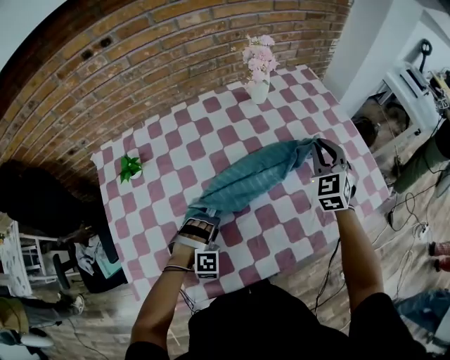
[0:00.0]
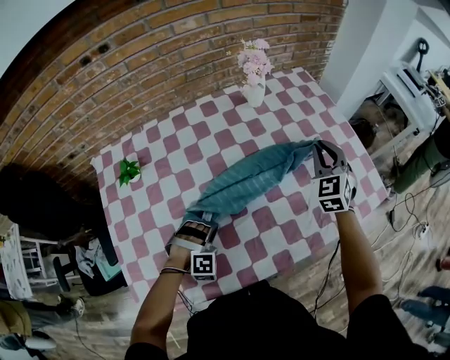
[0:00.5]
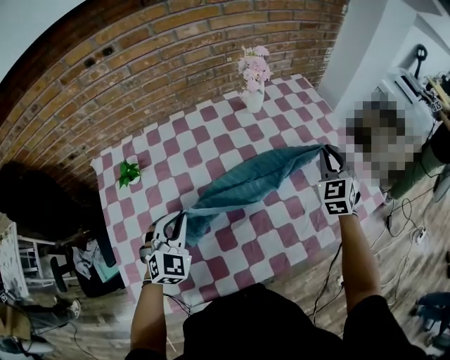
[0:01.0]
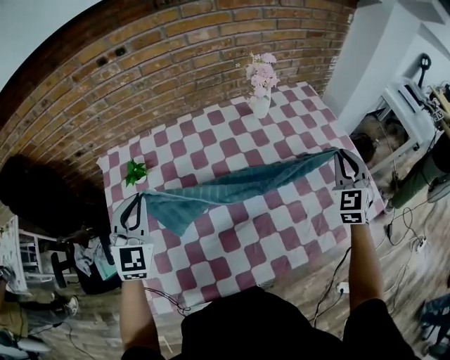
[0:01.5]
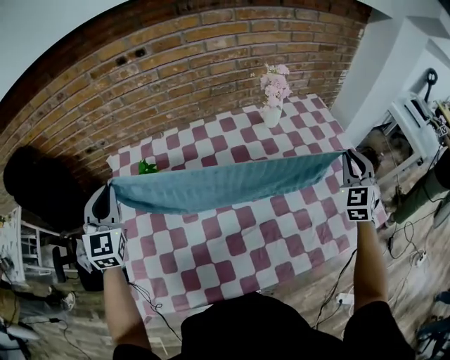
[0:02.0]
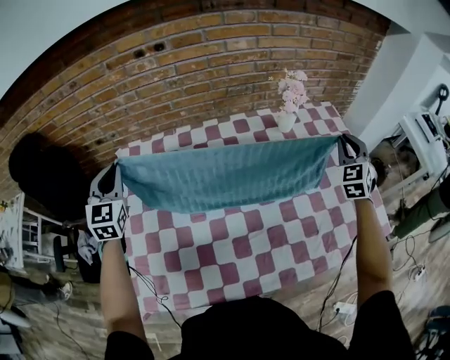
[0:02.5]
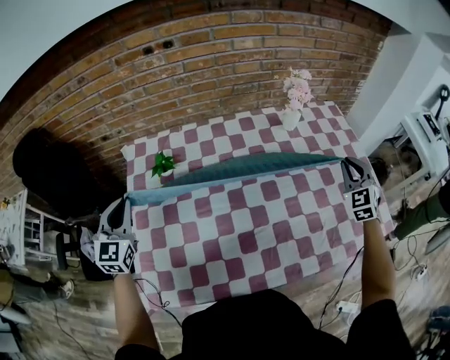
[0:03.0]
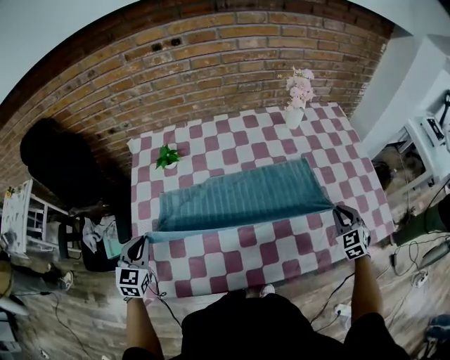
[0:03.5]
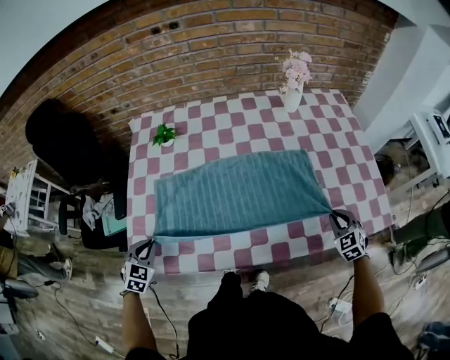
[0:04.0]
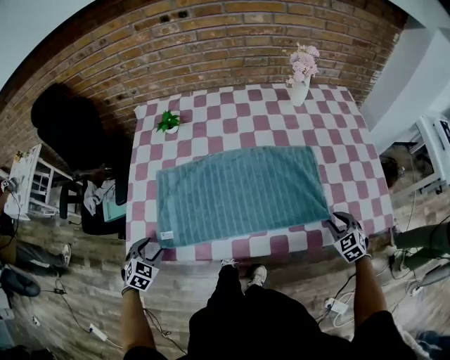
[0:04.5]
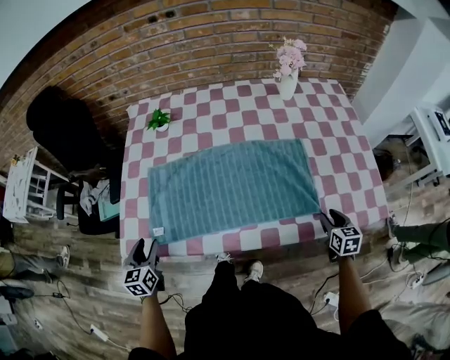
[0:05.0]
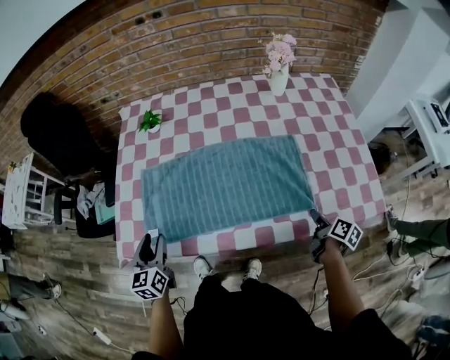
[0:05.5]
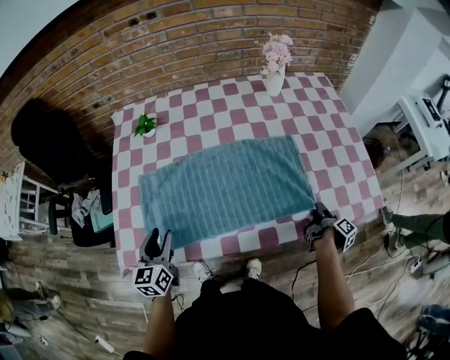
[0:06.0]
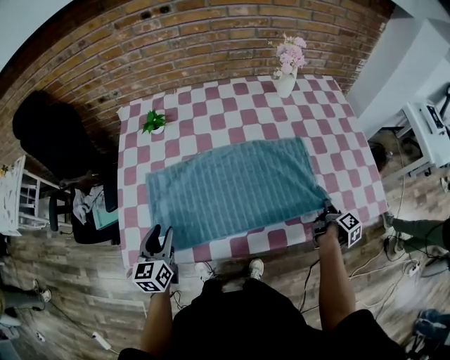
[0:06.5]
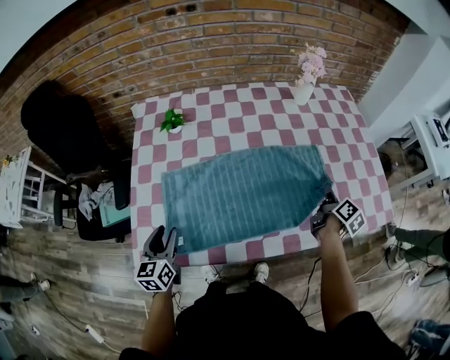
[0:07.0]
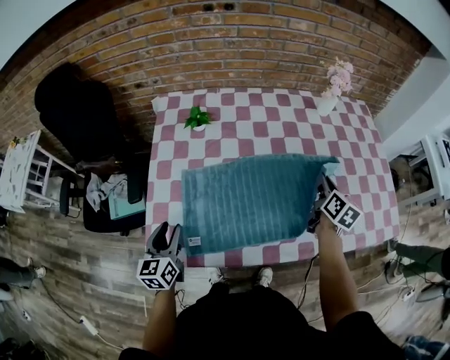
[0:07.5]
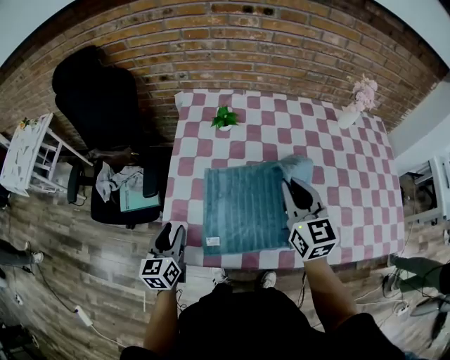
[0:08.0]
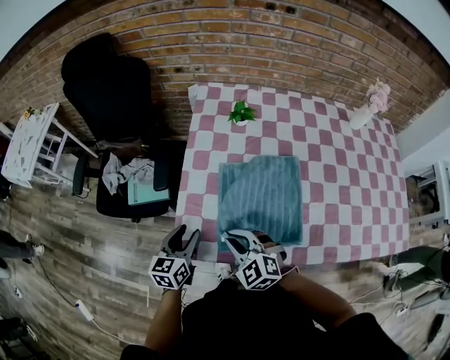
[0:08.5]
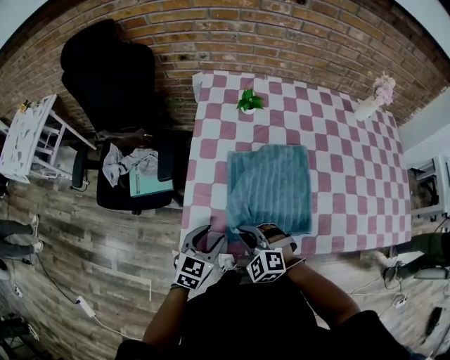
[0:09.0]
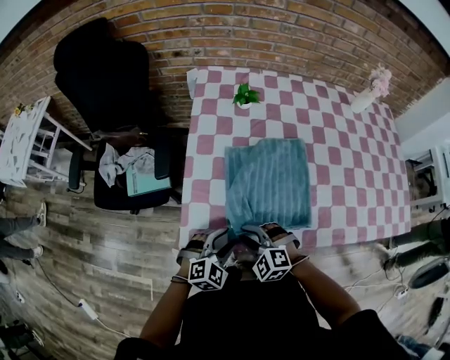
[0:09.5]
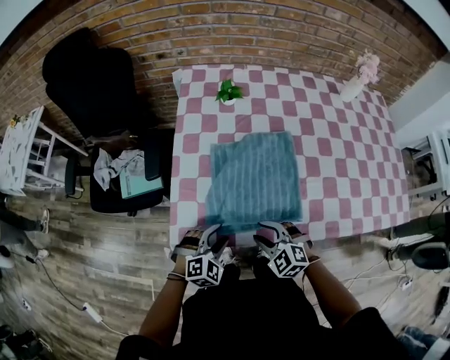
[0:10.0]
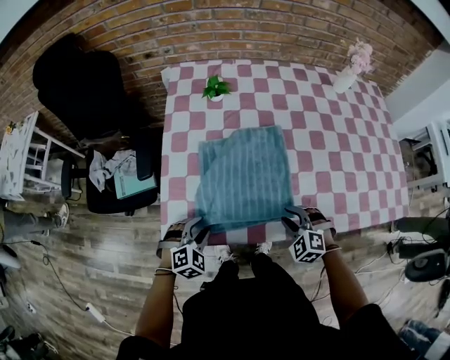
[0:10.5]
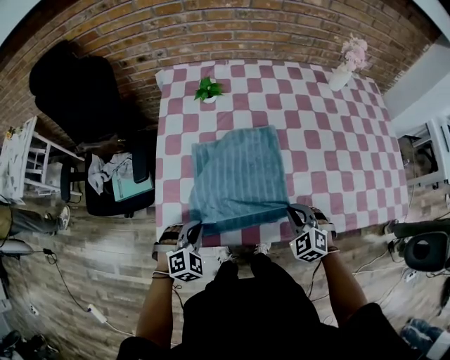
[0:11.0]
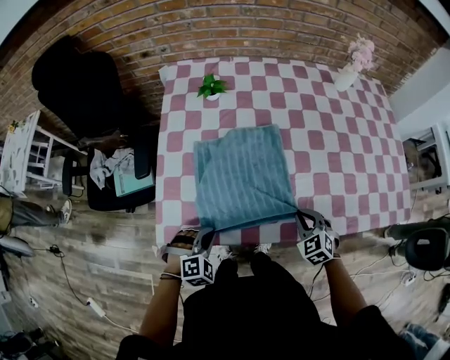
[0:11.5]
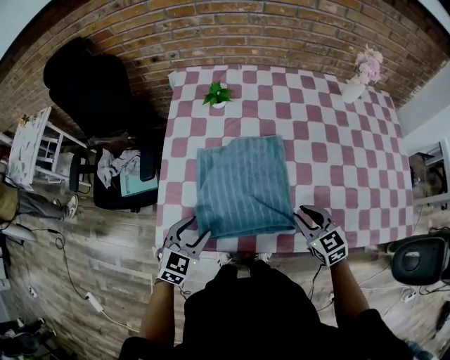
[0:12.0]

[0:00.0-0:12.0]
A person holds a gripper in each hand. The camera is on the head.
0:00.0 to 0:02.0: The right gripper goes approximately 10 cm upward and to the right, while the left gripper moves upward and to the left, roughly 40 cm, angles its fingers upward, by approximately 50 degrees, and closes up.
0:02.0 to 0:04.0: The left gripper heads backward and downward, covering some 40 cm, and angles its fingers downward, by approximately 40 degrees. The right gripper travels downward and backward by approximately 30 cm, and turns by roughly 40 degrees.
0:04.0 to 0:06.0: The right gripper goes roughly 5 cm downward, and rolls clockwise, seen from behind, by approximately 130 degrees, while the left gripper heads to the right and upward, covering roughly 15 cm, rotates approximately 50 degrees, and opens up.
0:06.0 to 0:08.0: The right gripper travels to the left and upward by about 50 cm, and twists roughly 100 degrees counterclockwise, seen from behind; the left gripper is displaced to the left by approximately 20 cm.
0:08.0 to 0:10.0: The right gripper shifts about 30 cm downward, backward and to the left, tilts its fingers approximately 30 degrees downward, and opens up; the left gripper goes some 15 cm backward, to the right and downward, and rotates around the line of its fingers by roughly 60 degrees, clockwise from behind.
0:10.0 to 0:12.0: The right gripper moves to the right and forward, approximately 20 cm, and rotates roughly 30 degrees; the left gripper shifts some 10 cm upward and forward, turns by some 30 degrees, and closes and opens again.

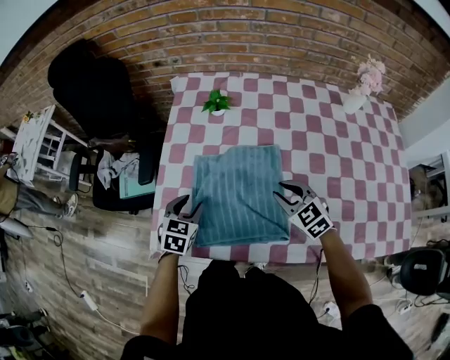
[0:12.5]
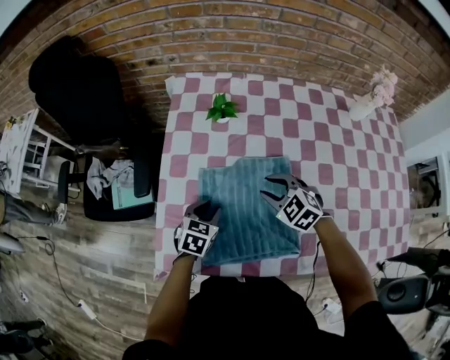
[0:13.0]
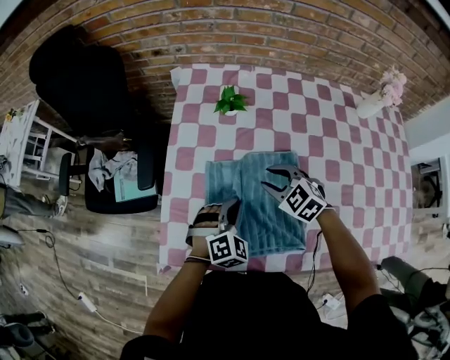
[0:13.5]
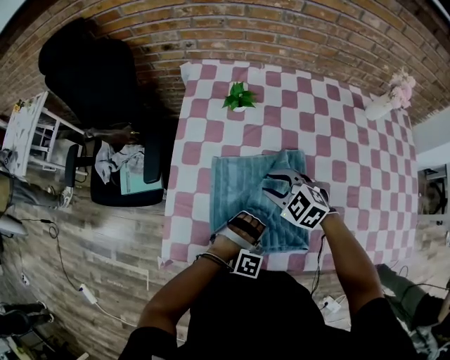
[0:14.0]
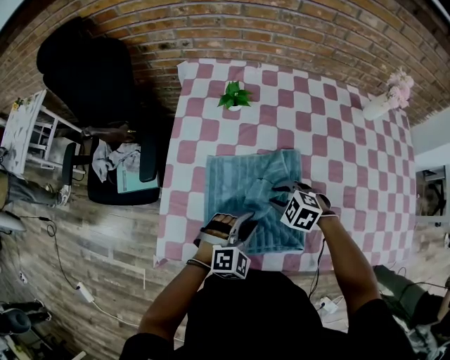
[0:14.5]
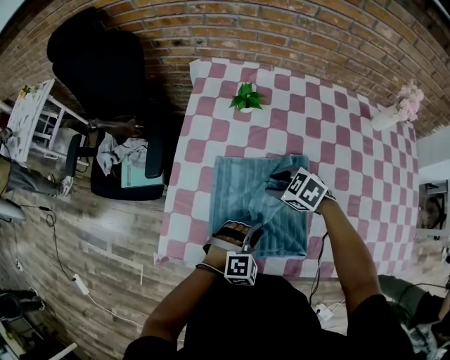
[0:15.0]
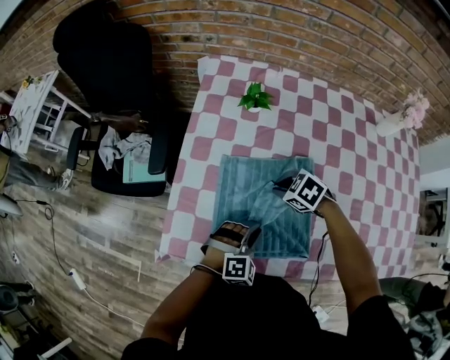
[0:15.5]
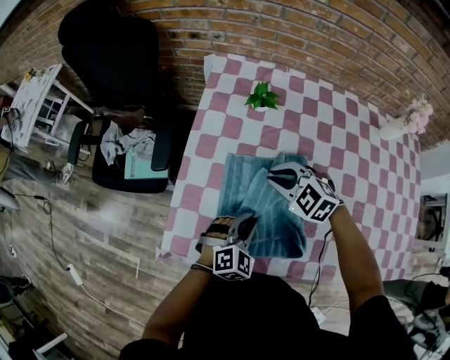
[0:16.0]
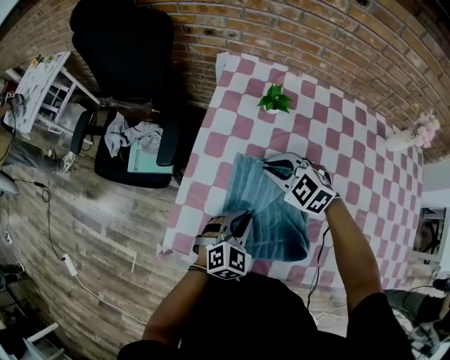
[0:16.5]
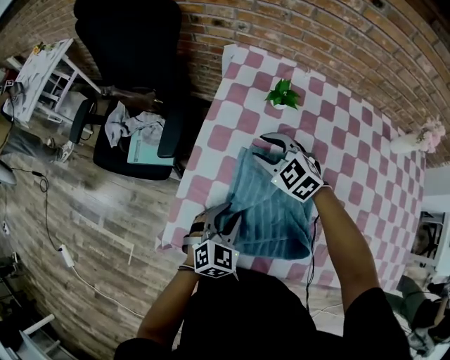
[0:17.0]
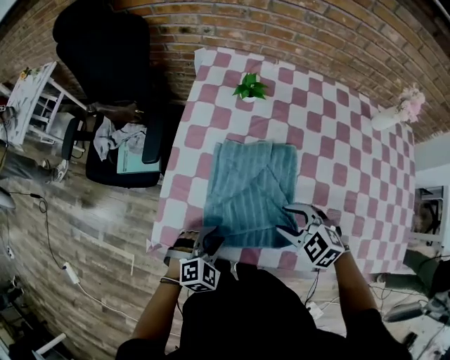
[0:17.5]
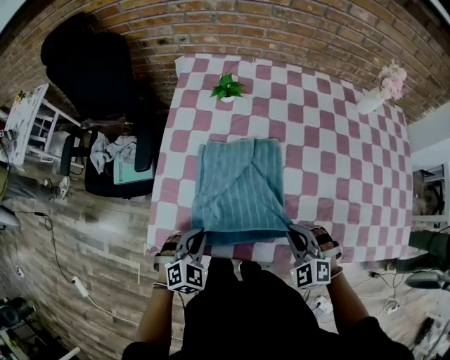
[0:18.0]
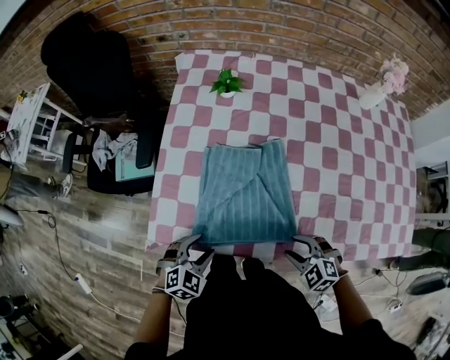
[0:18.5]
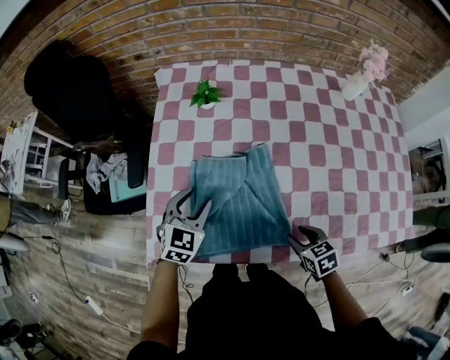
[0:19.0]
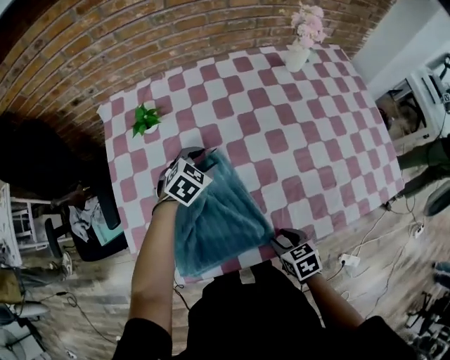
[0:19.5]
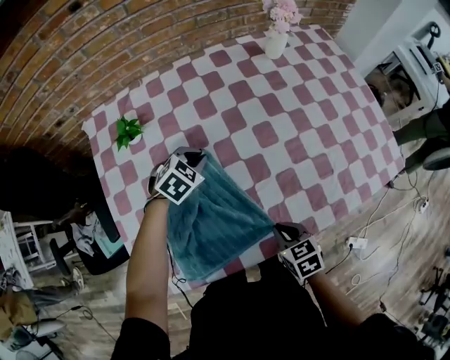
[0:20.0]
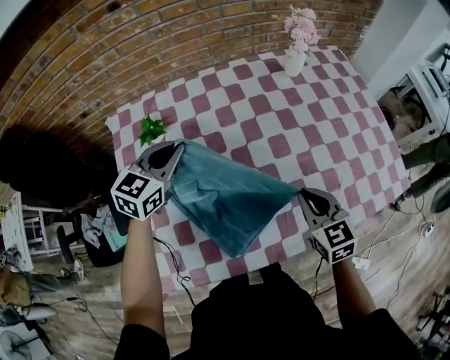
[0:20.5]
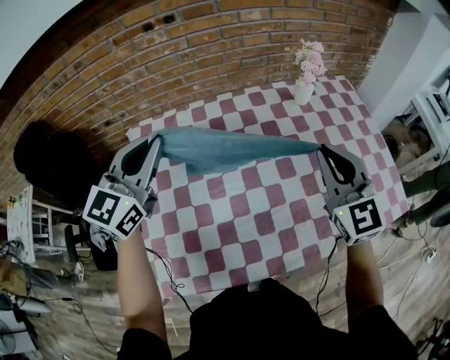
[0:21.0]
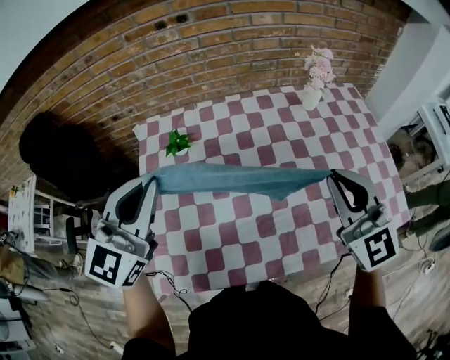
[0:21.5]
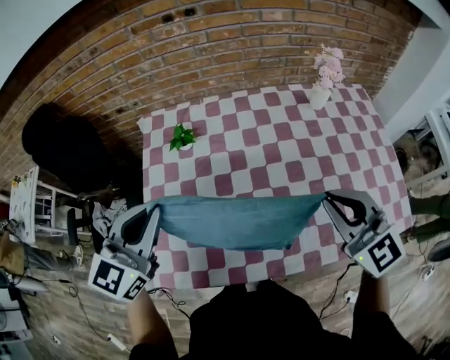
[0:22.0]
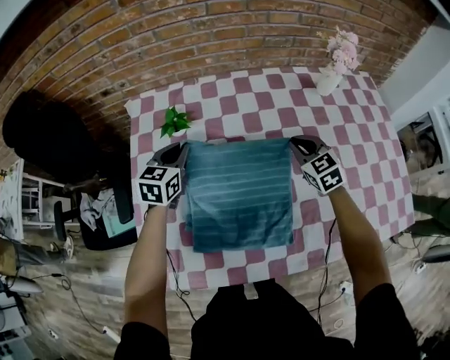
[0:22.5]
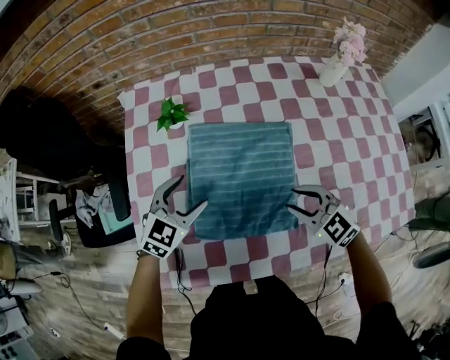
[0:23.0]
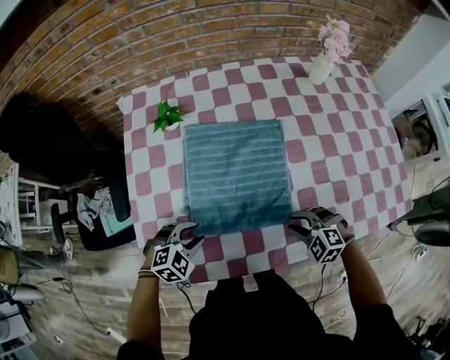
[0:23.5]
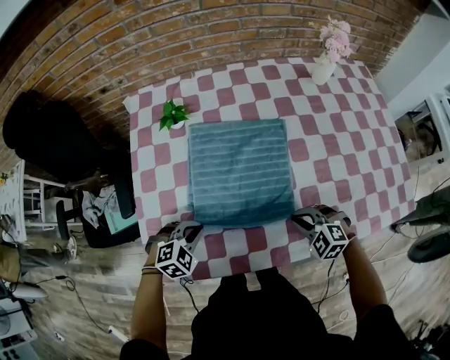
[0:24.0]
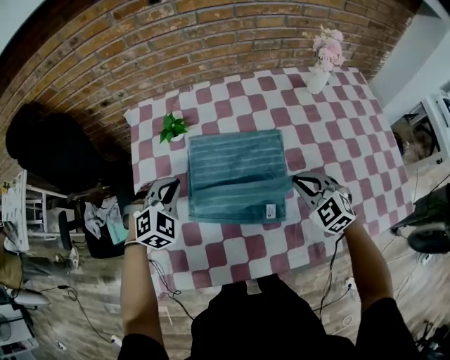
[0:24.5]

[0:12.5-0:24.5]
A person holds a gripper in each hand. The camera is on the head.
0:12.5 to 0:14.5: The right gripper shifts some 10 cm downward and to the left, and rotates about 40 degrees. The left gripper shifts about 15 cm to the right and backward, and twists some 50 degrees clockwise, seen from behind.
0:14.5 to 0:16.5: The right gripper moves forward, upward and to the left, approximately 20 cm, and changes its angle by approximately 20 degrees, while the left gripper is displaced to the left and forward by about 10 cm, and changes its angle by about 30 degrees.
0:16.5 to 0:18.5: The right gripper shifts about 40 cm backward and to the right, and opens up. Meanwhile the left gripper heads backward, covering some 15 cm, and opens its fingers.
0:18.5 to 0:20.5: The left gripper swings up and down, about 20 cm each way, with 2 reversals, swivels roughly 30 degrees, and closes its fingers. The right gripper changes place by about 25 cm, swivels about 60 degrees, and closes its fingers.
0:20.5 to 0:22.5: The right gripper is displaced forward by roughly 20 cm, and reaches about 25 cm upward, then returns. The left gripper heads to the left, covering some 10 cm, goes upward and returns, roughly 20 cm each way, and swivels some 20 degrees.
0:22.5 to 0:24.5: Both grippers move backward, roughly 10 cm. The right gripper rotates approximately 20 degrees, and opens, then closes again; the left gripper rolls clockwise, seen from behind, by approximately 50 degrees, and opens and closes again.

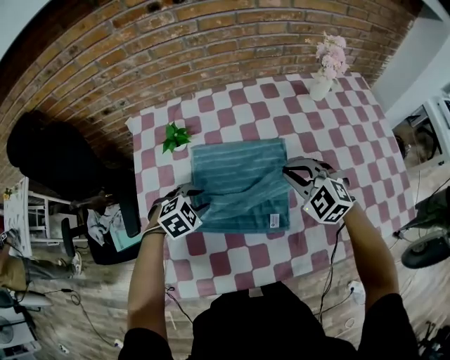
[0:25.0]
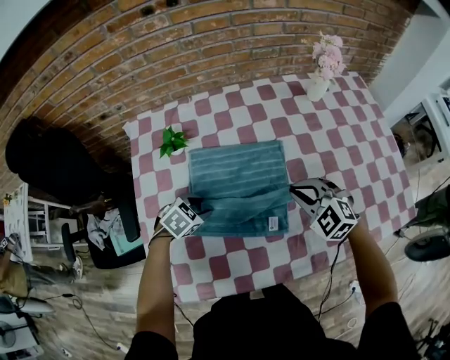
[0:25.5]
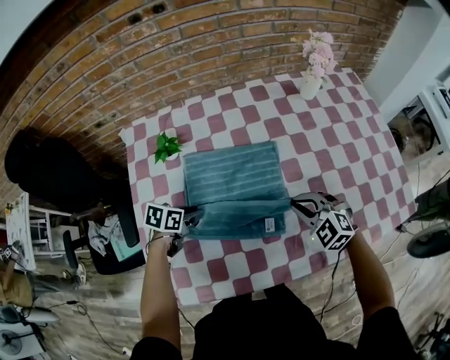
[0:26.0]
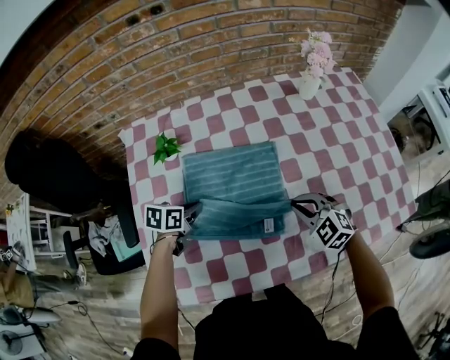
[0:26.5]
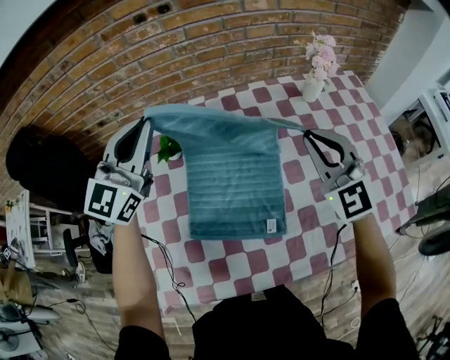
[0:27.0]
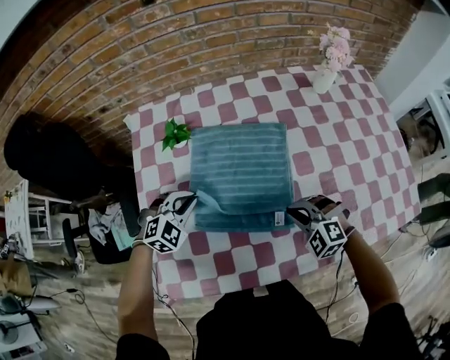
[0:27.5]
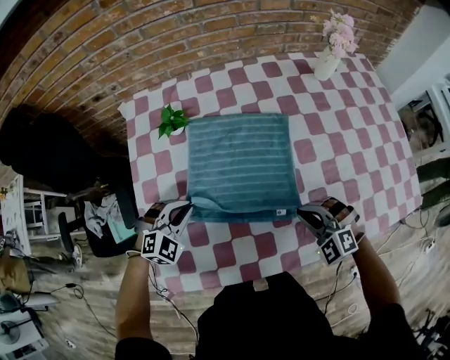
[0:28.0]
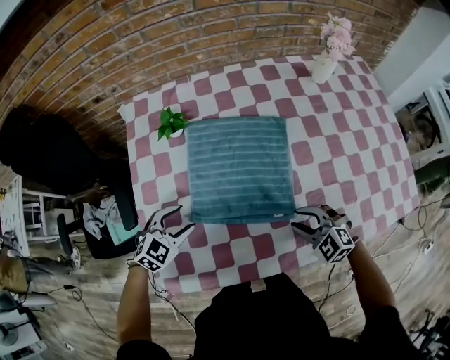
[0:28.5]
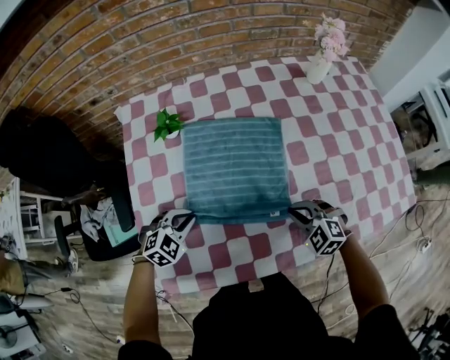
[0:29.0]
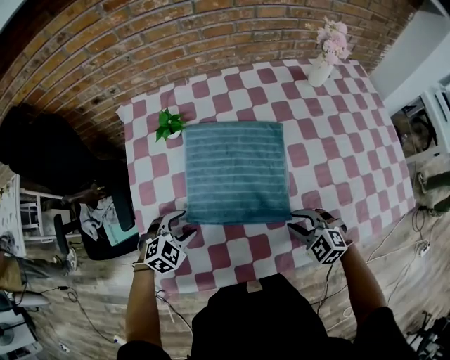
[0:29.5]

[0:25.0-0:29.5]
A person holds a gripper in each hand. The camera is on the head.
0:25.0 to 0:27.0: The right gripper is displaced upward by about 15 cm, and swivels about 30 degrees. The left gripper heads upward, covering some 35 cm, and tilts its fingers approximately 70 degrees upward.
0:27.0 to 0:29.5: The grippers both shift downward and backward by approximately 40 cm. The left gripper tilts its fingers about 60 degrees downward, and opens its fingers. Meanwhile the right gripper points its fingers roughly 40 degrees further downward.
